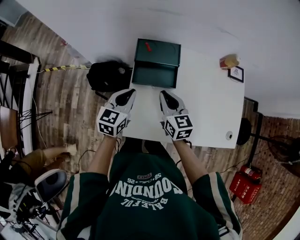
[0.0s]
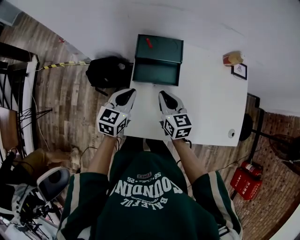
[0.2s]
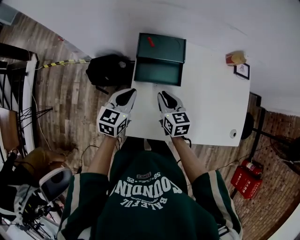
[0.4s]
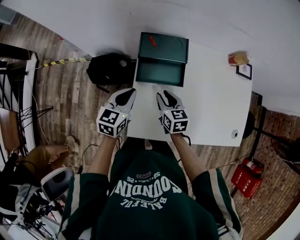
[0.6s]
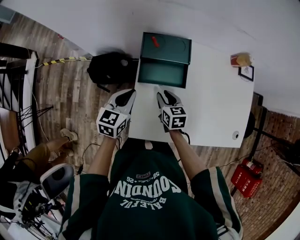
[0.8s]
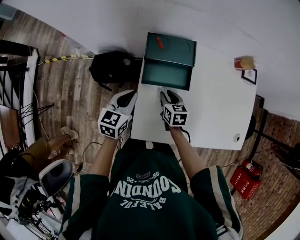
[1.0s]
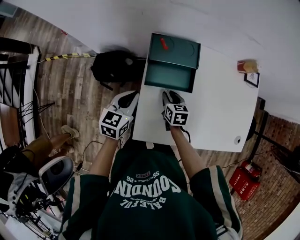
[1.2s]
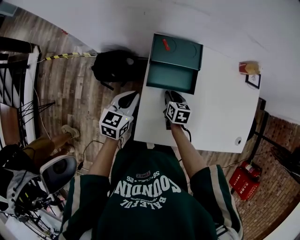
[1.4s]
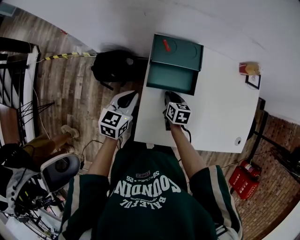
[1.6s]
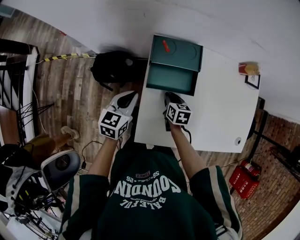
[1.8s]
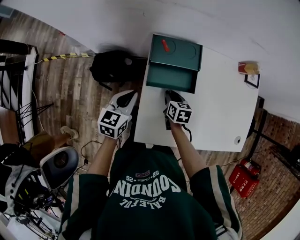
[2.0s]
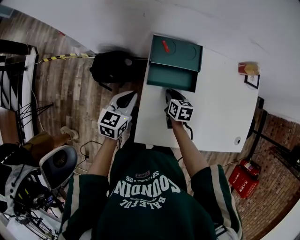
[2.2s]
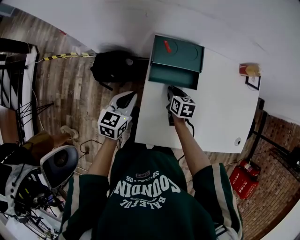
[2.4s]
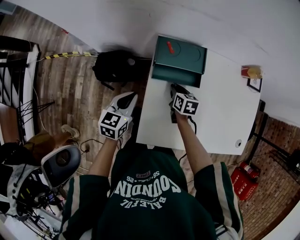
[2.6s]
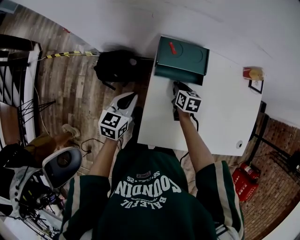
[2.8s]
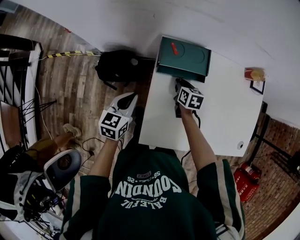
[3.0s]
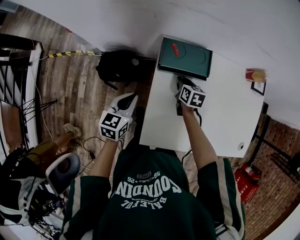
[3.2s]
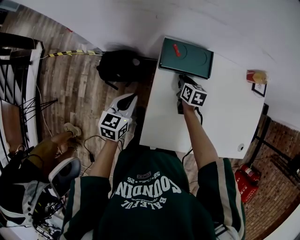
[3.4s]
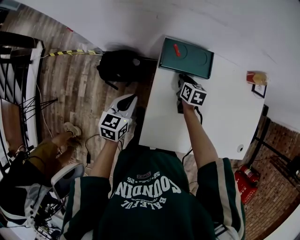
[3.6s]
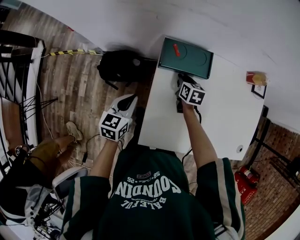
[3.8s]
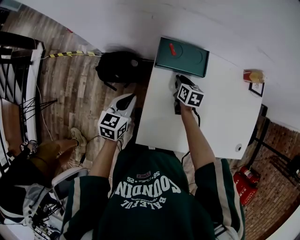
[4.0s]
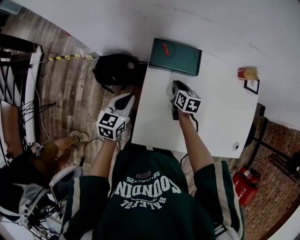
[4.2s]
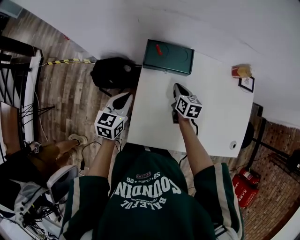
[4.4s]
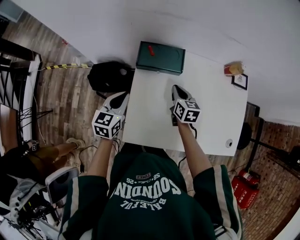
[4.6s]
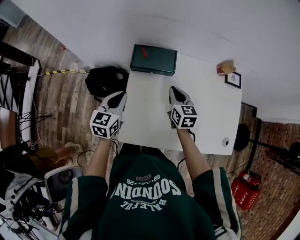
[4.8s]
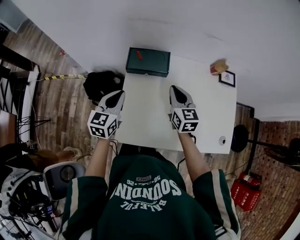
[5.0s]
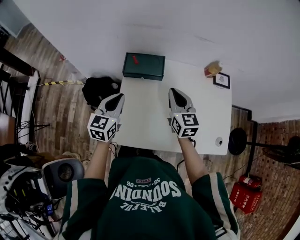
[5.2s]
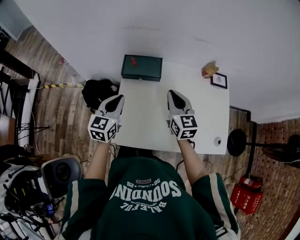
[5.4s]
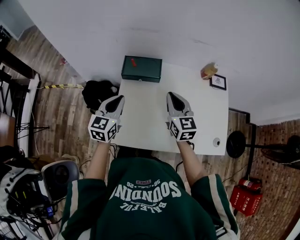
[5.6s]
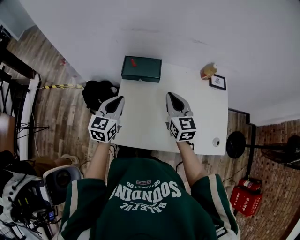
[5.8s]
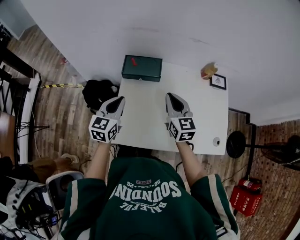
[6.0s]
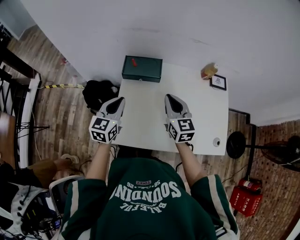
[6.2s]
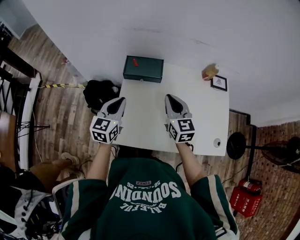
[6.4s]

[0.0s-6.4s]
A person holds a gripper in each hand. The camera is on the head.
0.0s to 1.6s: The left gripper goes about 10 cm downward and to the left. The right gripper heads downward, covering roughly 20 cm, and turns by about 30 degrees.
1.6s to 3.2s: The right gripper is displaced forward by roughly 10 cm, while the left gripper heads to the left, covering some 5 cm.
3.2s to 4.8s: The left gripper shifts about 15 cm to the right and upward. Meanwhile the right gripper goes roughly 20 cm upward, to the right and backward, and rotates roughly 30 degrees.
4.8s to 6.4s: The left gripper travels upward by roughly 5 cm; the right gripper moves upward and backward, about 15 cm.

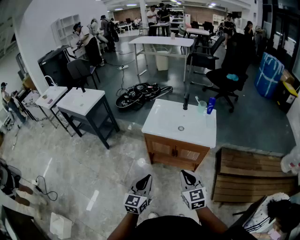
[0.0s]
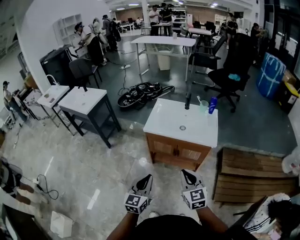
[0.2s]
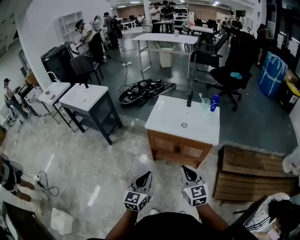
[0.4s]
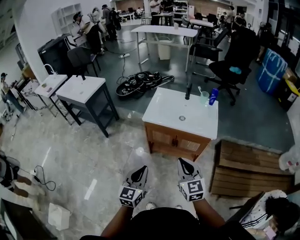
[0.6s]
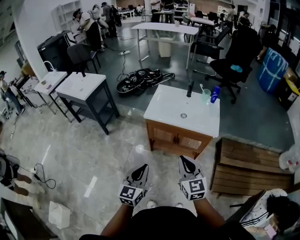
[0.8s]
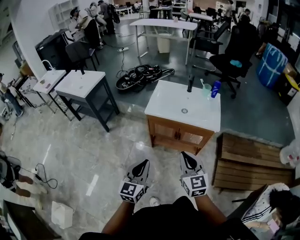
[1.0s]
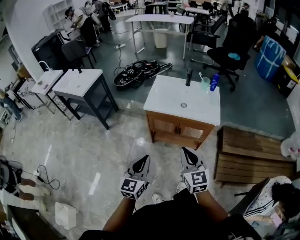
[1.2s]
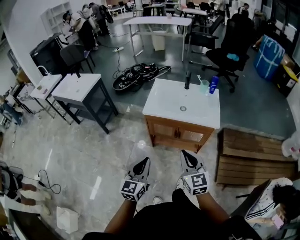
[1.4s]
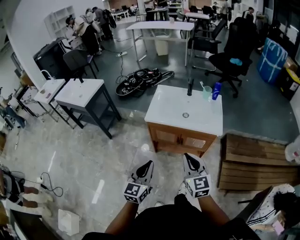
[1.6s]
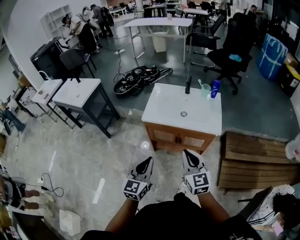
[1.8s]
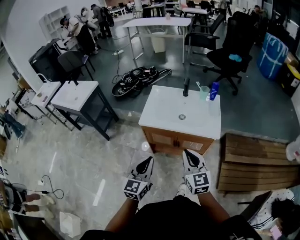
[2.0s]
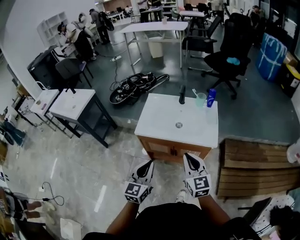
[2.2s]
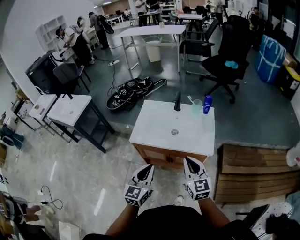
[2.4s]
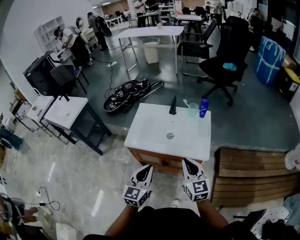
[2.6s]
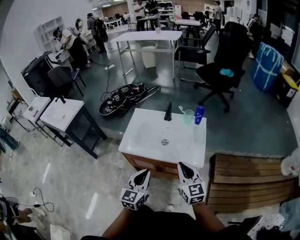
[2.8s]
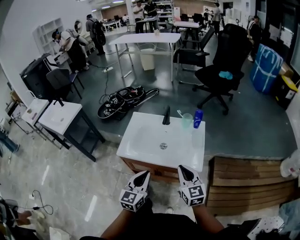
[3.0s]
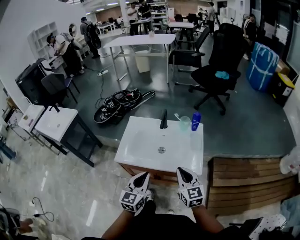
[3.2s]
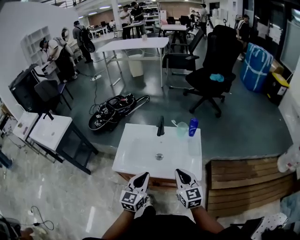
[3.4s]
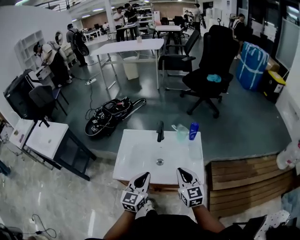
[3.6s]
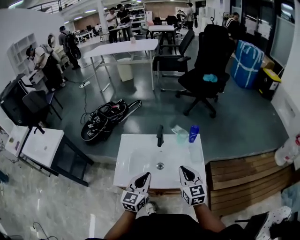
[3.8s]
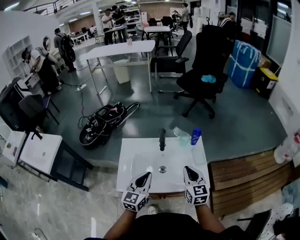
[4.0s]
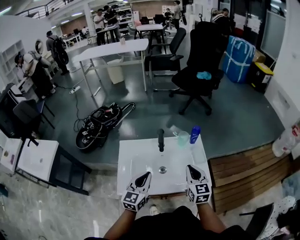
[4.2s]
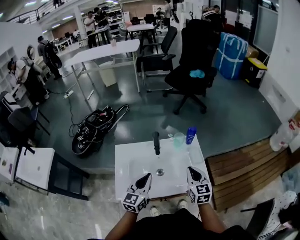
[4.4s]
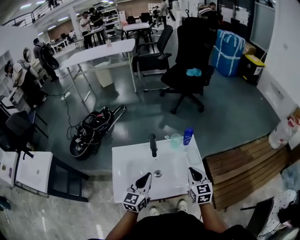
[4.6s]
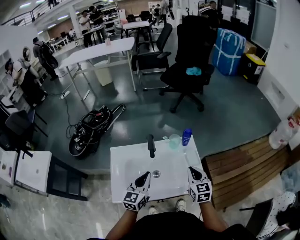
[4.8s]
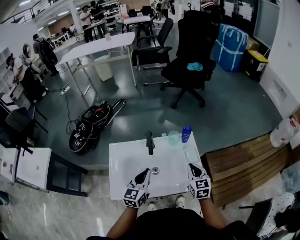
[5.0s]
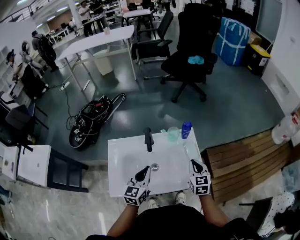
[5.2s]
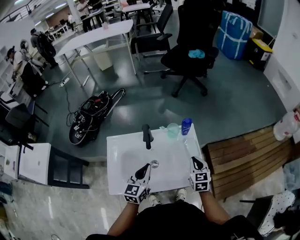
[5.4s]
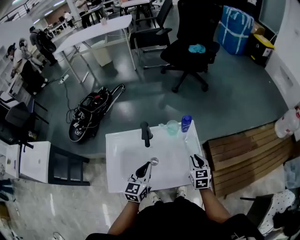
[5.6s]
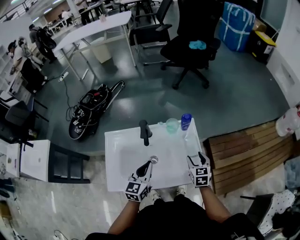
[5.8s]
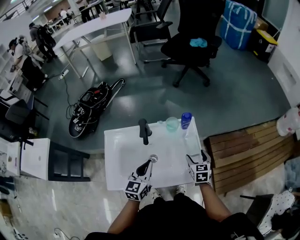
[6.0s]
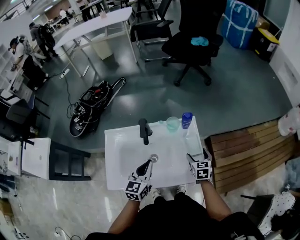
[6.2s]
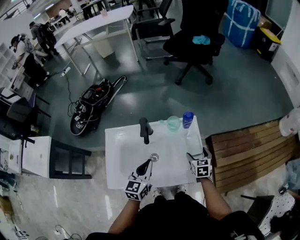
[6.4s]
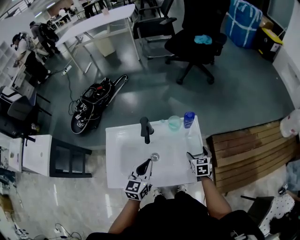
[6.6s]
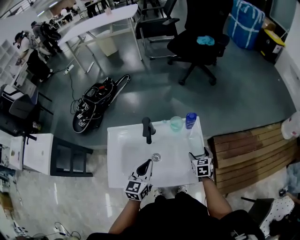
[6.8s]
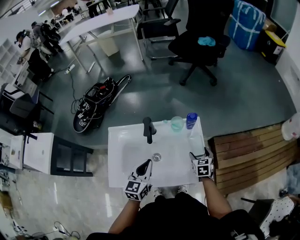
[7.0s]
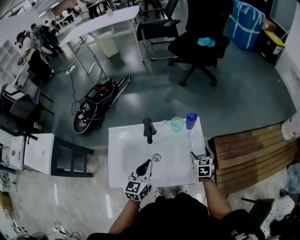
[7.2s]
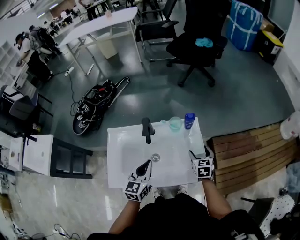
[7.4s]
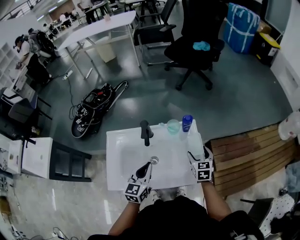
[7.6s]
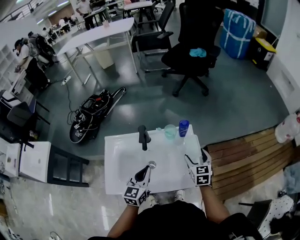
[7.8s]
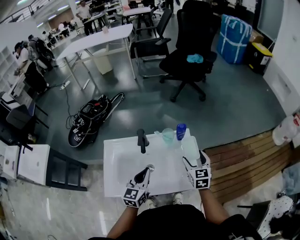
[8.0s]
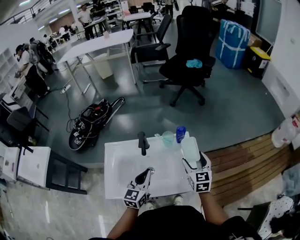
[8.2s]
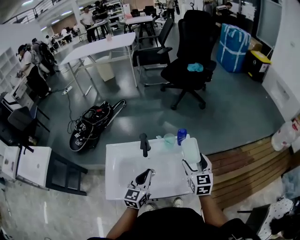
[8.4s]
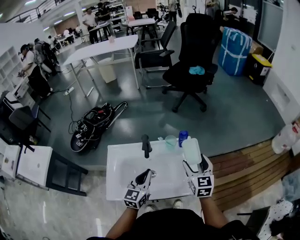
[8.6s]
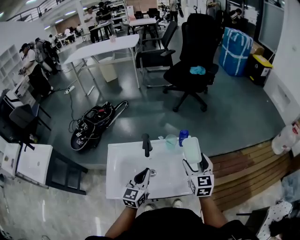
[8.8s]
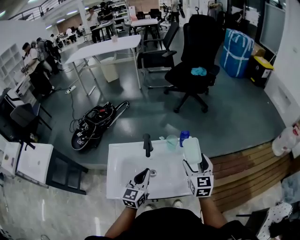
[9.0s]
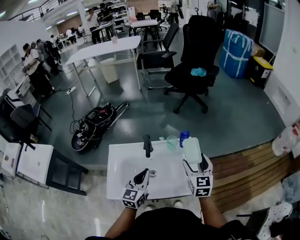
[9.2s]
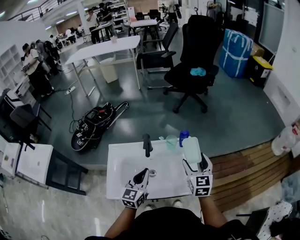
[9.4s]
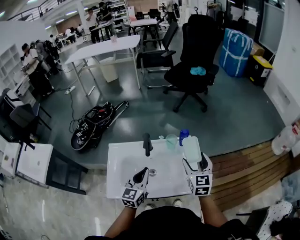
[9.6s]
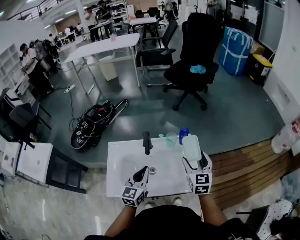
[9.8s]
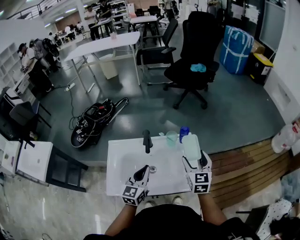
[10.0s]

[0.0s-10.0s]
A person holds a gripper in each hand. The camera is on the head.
0.0s to 1.4s: The grippers move only a little.
1.4s to 2.8s: The two grippers go roughly 25 cm forward and to the right.
2.8s to 4.2s: Both grippers travel together forward, some 20 cm. The right gripper turns by about 30 degrees.
4.2s to 5.8s: The left gripper moves forward, to the right and downward, about 10 cm; the right gripper goes some 20 cm downward, to the right and forward, swivels roughly 20 degrees, and opens.
5.8s to 7.2s: The right gripper moves downward, some 5 cm.
7.2s to 8.6s: The left gripper moves upward, roughly 5 cm; the right gripper moves upward, some 25 cm, and swivels about 30 degrees.
8.6s to 10.0s: The grippers stay close to where they were, moving slightly.

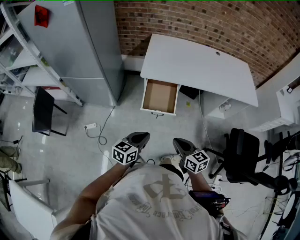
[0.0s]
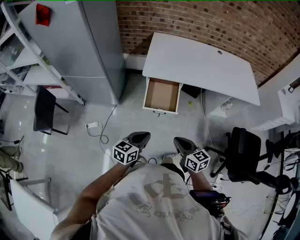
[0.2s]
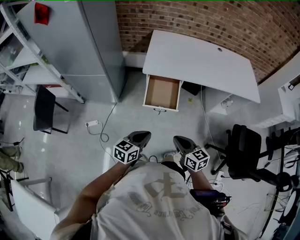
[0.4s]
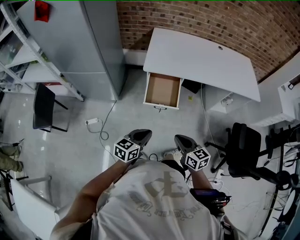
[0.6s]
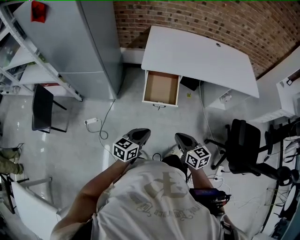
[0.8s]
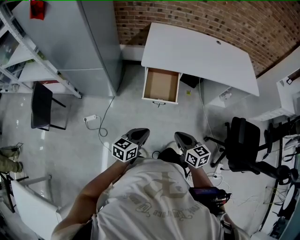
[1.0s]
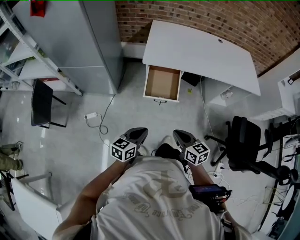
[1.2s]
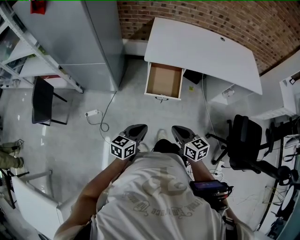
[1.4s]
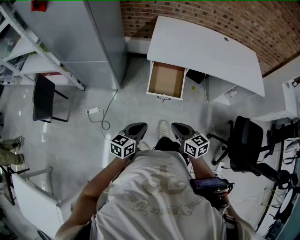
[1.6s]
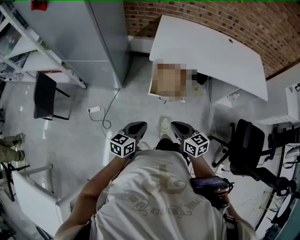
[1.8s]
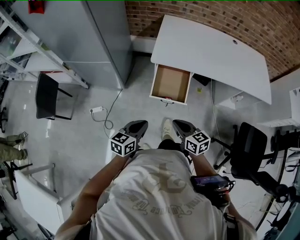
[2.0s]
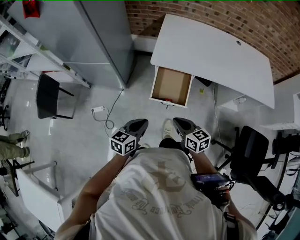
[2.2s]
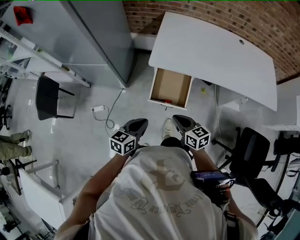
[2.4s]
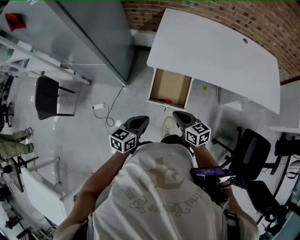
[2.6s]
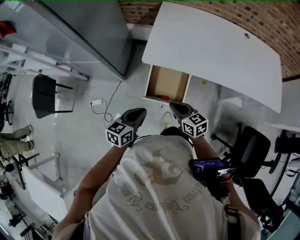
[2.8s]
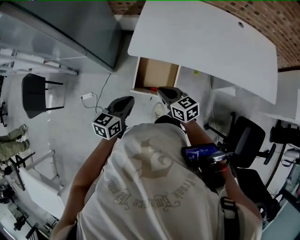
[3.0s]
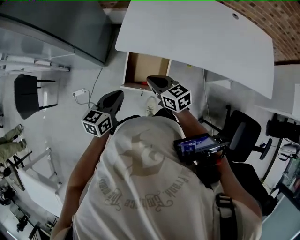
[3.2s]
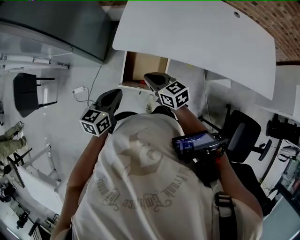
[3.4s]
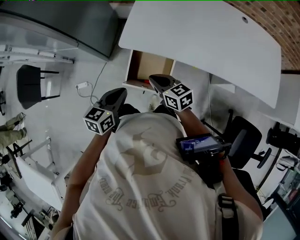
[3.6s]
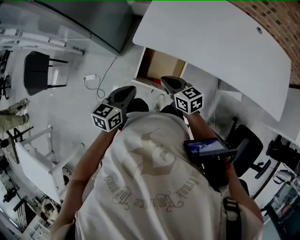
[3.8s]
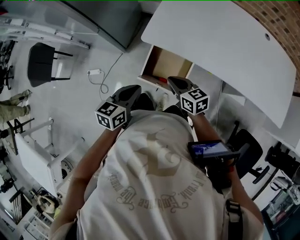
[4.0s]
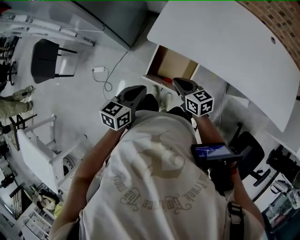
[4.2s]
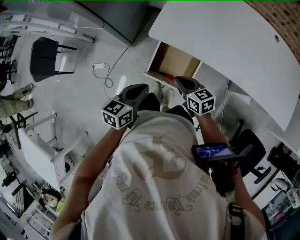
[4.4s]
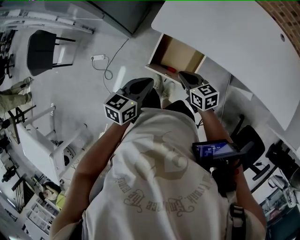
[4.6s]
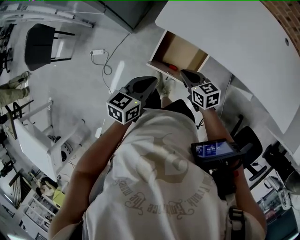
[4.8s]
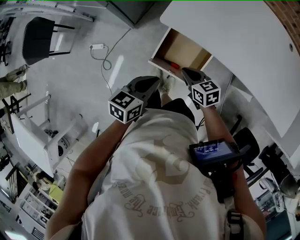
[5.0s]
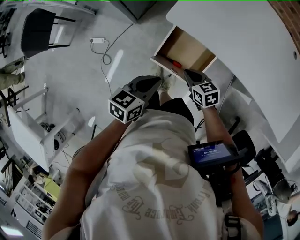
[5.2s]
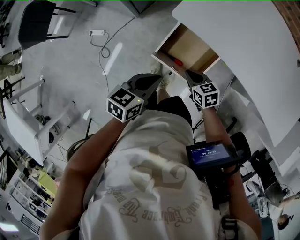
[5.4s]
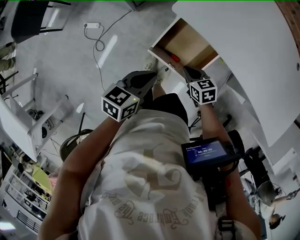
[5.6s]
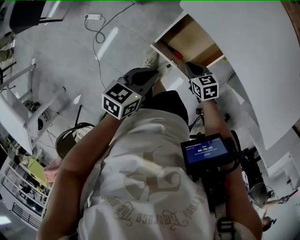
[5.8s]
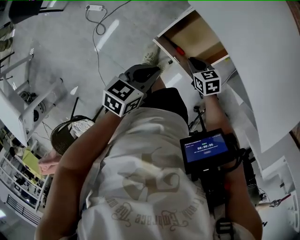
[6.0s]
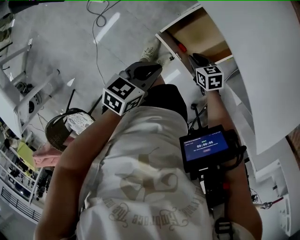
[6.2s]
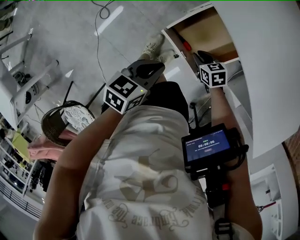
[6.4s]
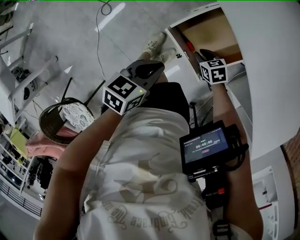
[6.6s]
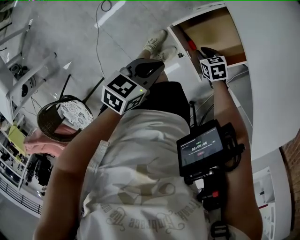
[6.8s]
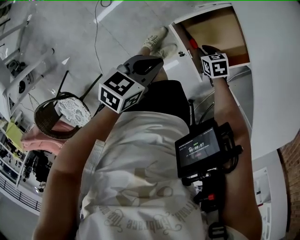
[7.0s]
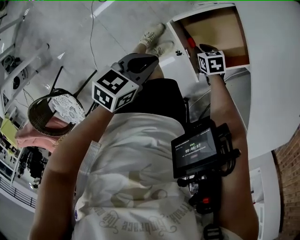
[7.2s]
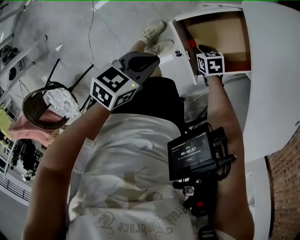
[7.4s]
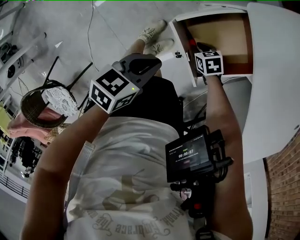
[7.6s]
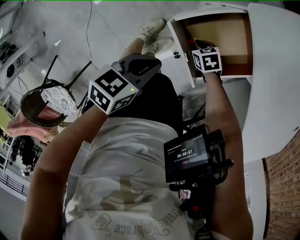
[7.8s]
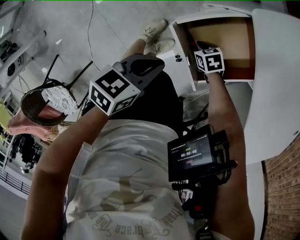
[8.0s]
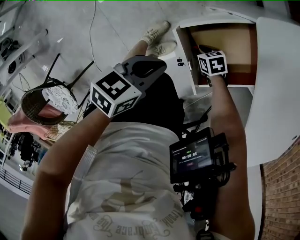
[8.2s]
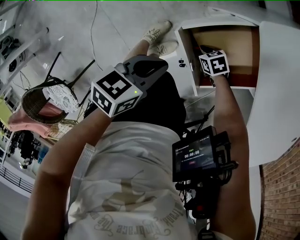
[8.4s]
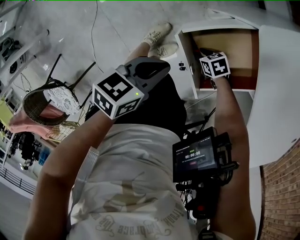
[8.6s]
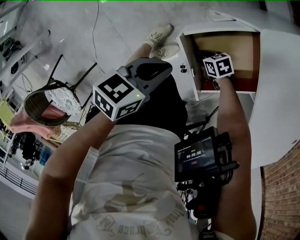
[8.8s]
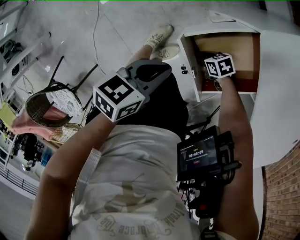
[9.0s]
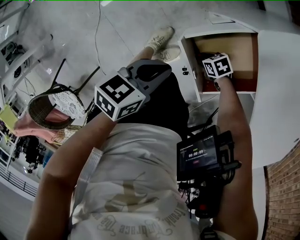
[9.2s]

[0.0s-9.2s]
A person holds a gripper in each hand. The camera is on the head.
0.0s to 1.6s: The left gripper shifts by roughly 5 cm, while the right gripper travels to the left by approximately 5 cm.
1.6s to 3.0s: The two grippers go approximately 25 cm forward.
3.0s to 4.6s: The right gripper travels downward by about 10 cm.
4.6s to 6.2s: The right gripper shifts approximately 20 cm downward, and swivels roughly 30 degrees. Meanwhile the left gripper travels downward by approximately 10 cm.
6.2s to 7.6s: The right gripper goes roughly 15 cm downward, and rotates some 20 degrees. Meanwhile the left gripper moves downward, roughly 10 cm.
7.6s to 9.2s: The left gripper shifts by about 5 cm.
